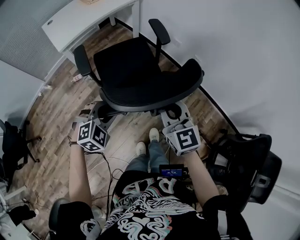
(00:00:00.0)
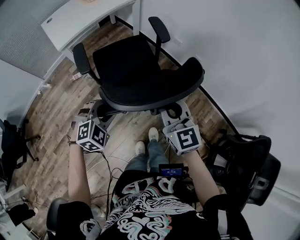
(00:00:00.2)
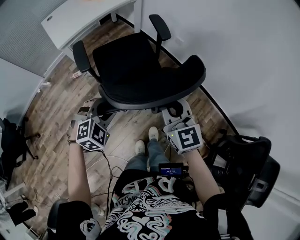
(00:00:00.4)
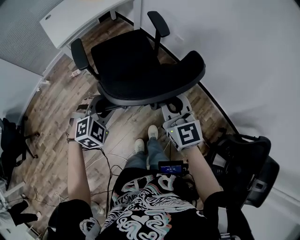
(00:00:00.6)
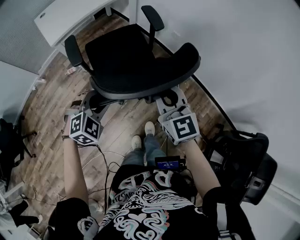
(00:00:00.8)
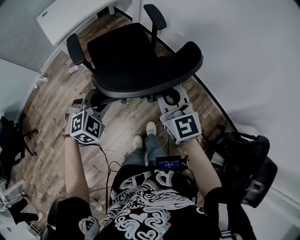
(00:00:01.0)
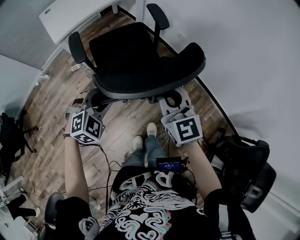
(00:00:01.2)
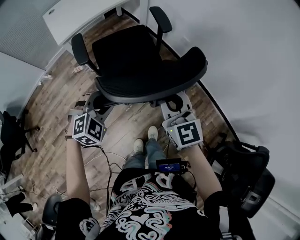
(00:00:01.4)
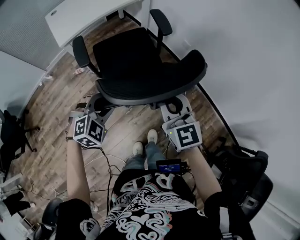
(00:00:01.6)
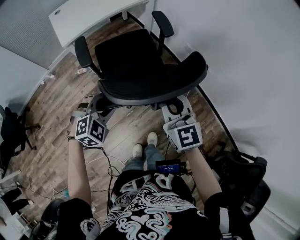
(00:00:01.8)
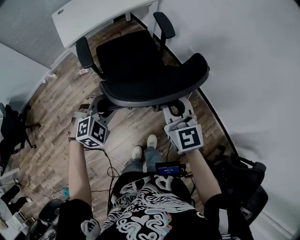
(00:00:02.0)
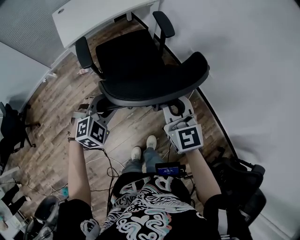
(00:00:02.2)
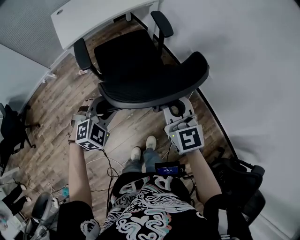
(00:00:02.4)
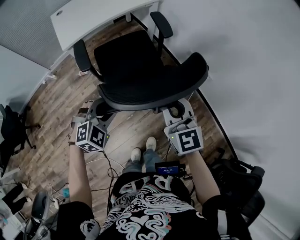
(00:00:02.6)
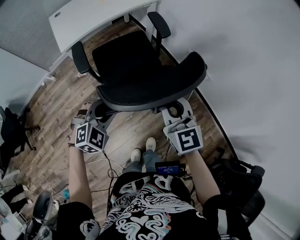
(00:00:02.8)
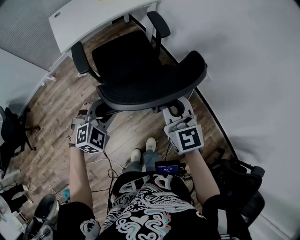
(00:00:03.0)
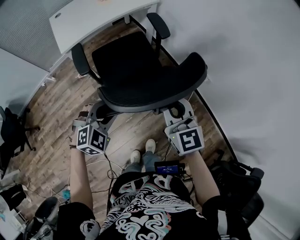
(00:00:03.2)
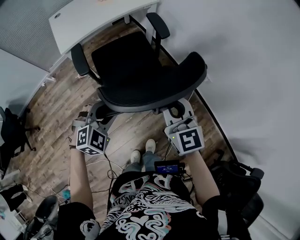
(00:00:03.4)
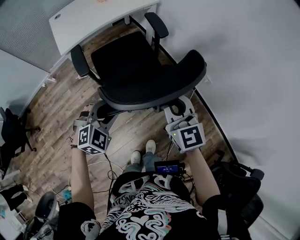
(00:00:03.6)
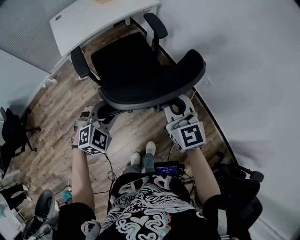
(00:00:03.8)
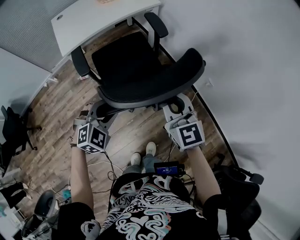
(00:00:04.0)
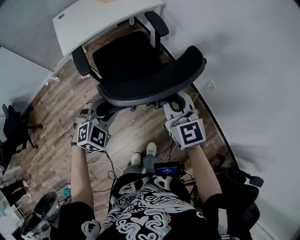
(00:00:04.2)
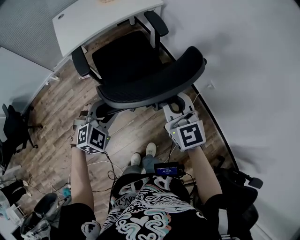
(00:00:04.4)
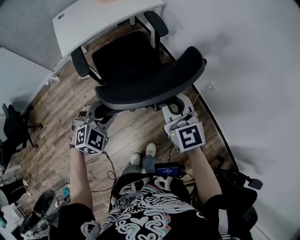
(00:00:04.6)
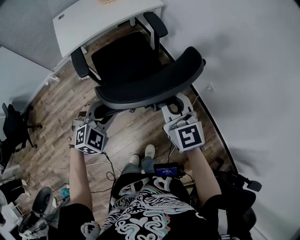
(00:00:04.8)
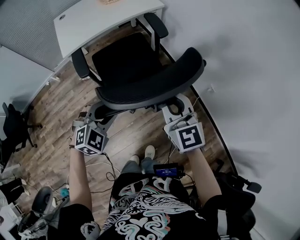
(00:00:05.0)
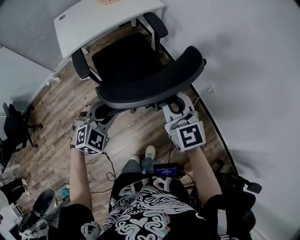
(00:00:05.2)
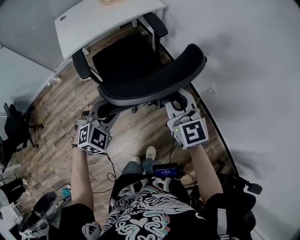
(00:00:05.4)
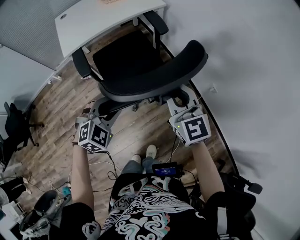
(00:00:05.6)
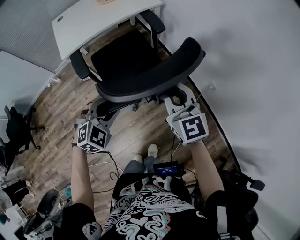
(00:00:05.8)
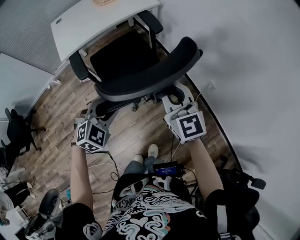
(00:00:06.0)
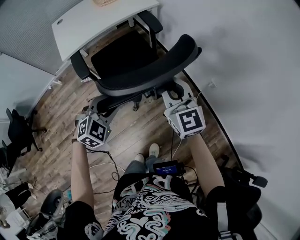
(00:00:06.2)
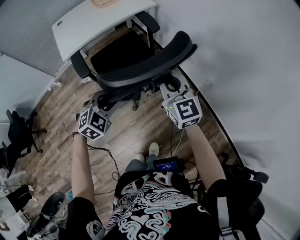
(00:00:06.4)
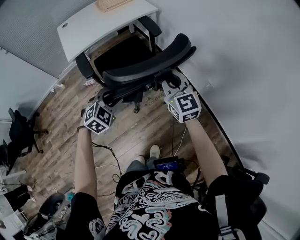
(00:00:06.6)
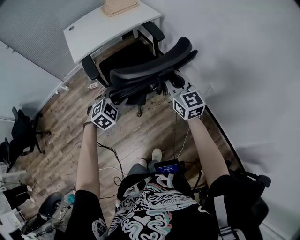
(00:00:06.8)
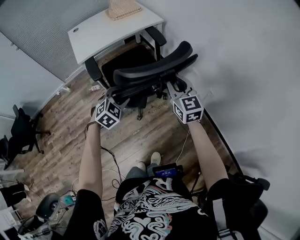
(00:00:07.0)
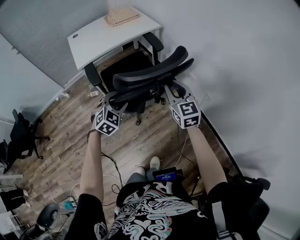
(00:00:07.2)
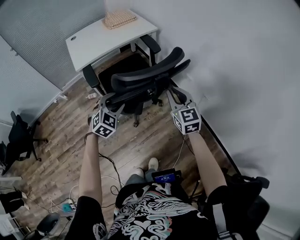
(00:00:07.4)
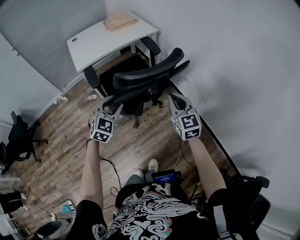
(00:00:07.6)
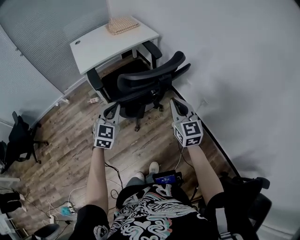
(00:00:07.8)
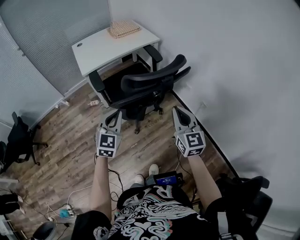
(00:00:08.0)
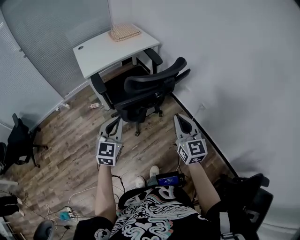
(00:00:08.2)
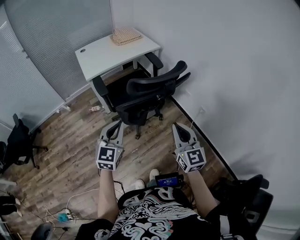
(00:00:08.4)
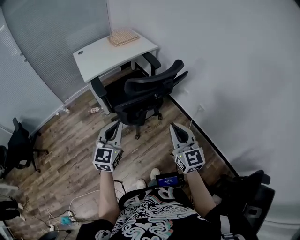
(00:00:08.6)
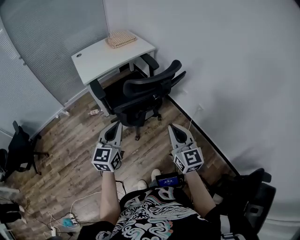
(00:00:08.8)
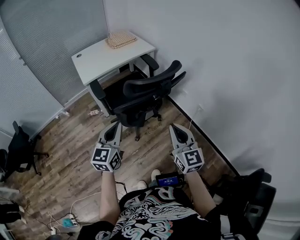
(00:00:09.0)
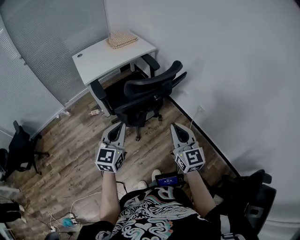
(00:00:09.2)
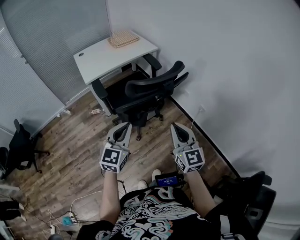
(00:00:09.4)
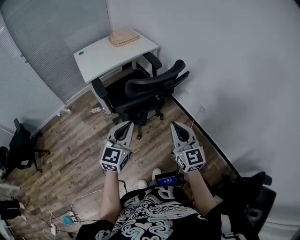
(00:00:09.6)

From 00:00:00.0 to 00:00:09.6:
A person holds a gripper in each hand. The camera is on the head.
From 00:00:00.0 to 00:00:01.6: The two grippers go some 10 cm forward.
From 00:00:01.6 to 00:00:03.2: The right gripper shifts roughly 5 cm forward.
From 00:00:03.2 to 00:00:04.8: The left gripper changes place by about 5 cm, while the right gripper goes about 5 cm forward.
From 00:00:04.8 to 00:00:06.4: There are only small adjustments of the grippers.
From 00:00:06.4 to 00:00:08.0: The left gripper goes approximately 15 cm upward and backward, angles its fingers upward, by some 30 degrees, and closes its fingers. Meanwhile the right gripper shifts roughly 15 cm backward.
From 00:00:08.0 to 00:00:09.6: Both grippers move backward, roughly 5 cm.

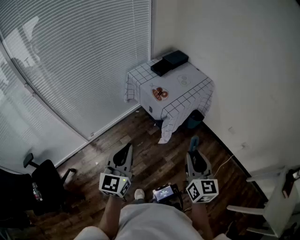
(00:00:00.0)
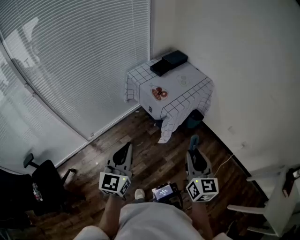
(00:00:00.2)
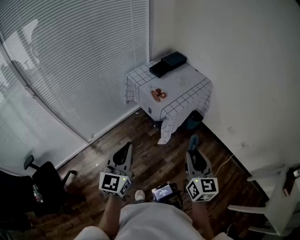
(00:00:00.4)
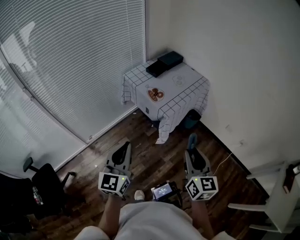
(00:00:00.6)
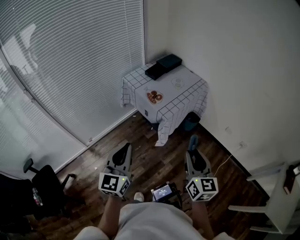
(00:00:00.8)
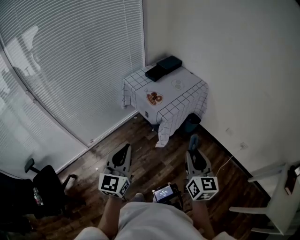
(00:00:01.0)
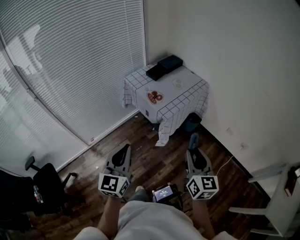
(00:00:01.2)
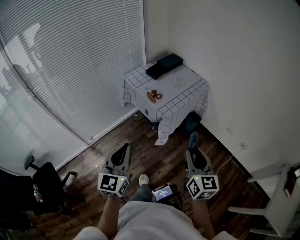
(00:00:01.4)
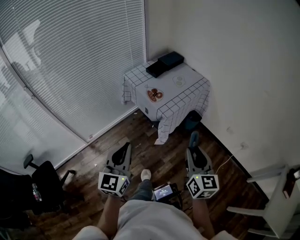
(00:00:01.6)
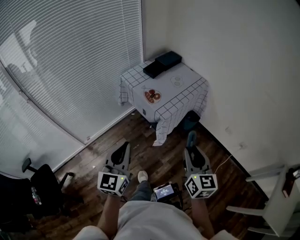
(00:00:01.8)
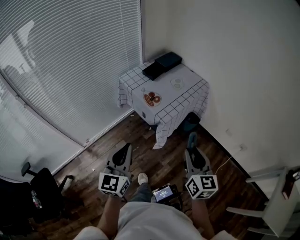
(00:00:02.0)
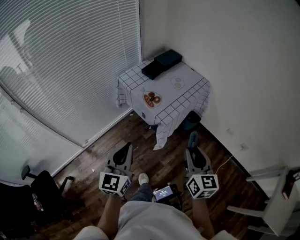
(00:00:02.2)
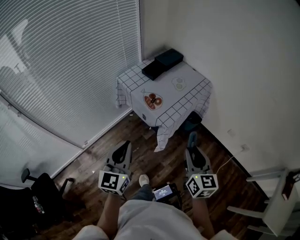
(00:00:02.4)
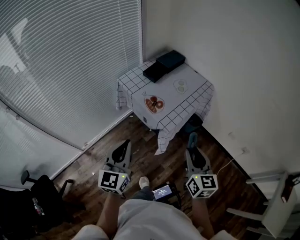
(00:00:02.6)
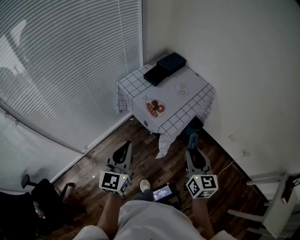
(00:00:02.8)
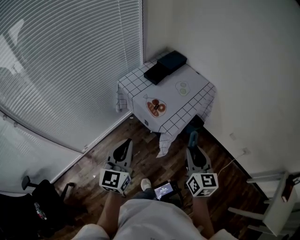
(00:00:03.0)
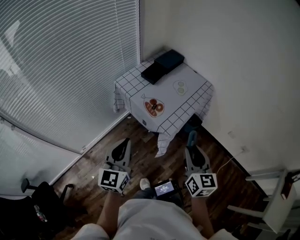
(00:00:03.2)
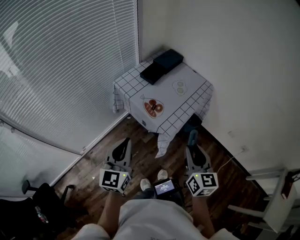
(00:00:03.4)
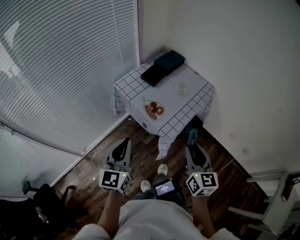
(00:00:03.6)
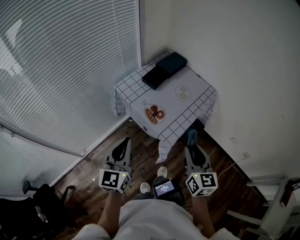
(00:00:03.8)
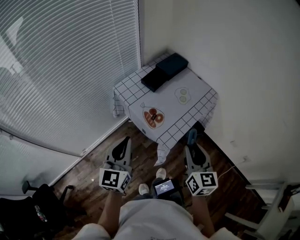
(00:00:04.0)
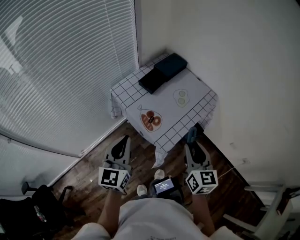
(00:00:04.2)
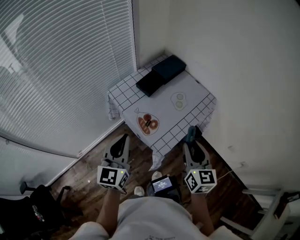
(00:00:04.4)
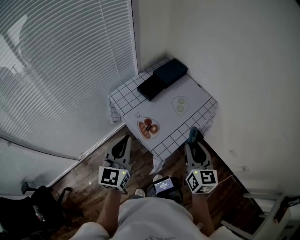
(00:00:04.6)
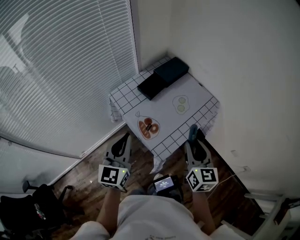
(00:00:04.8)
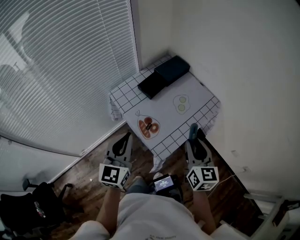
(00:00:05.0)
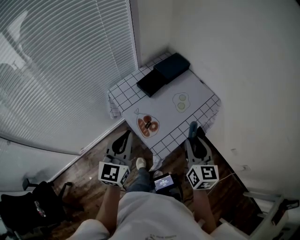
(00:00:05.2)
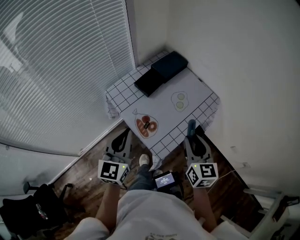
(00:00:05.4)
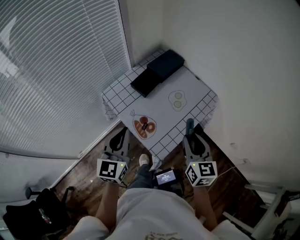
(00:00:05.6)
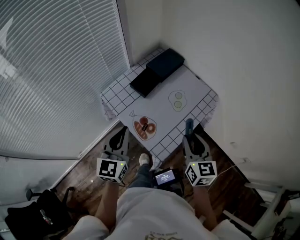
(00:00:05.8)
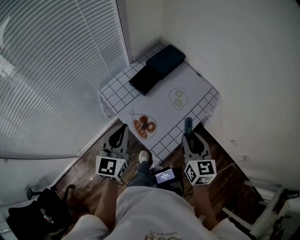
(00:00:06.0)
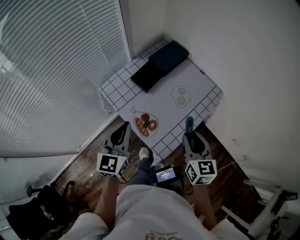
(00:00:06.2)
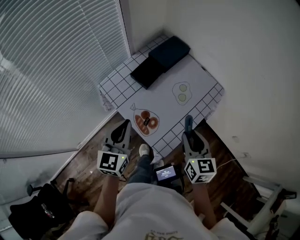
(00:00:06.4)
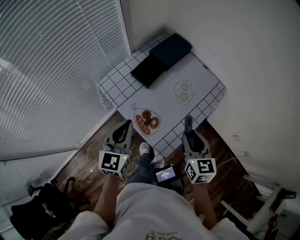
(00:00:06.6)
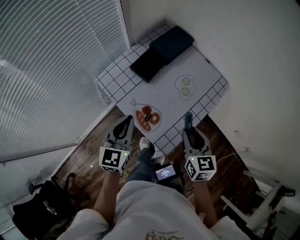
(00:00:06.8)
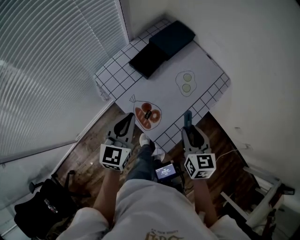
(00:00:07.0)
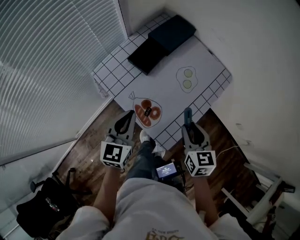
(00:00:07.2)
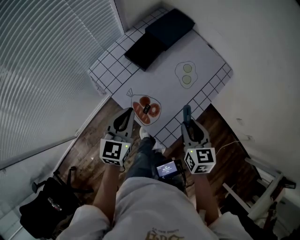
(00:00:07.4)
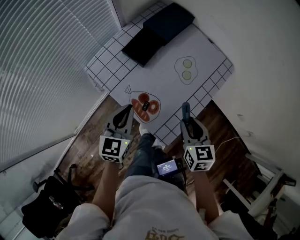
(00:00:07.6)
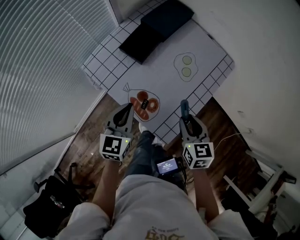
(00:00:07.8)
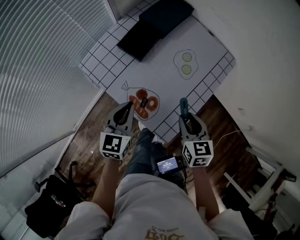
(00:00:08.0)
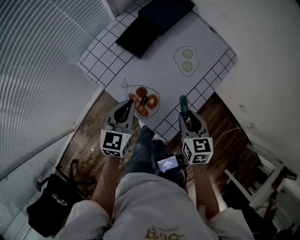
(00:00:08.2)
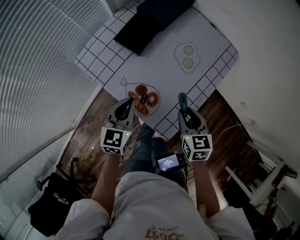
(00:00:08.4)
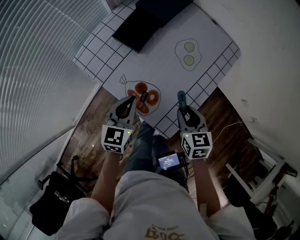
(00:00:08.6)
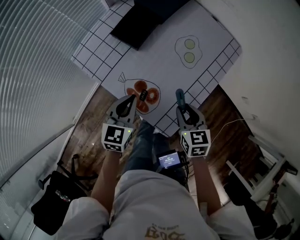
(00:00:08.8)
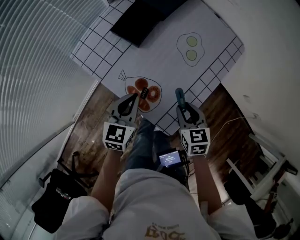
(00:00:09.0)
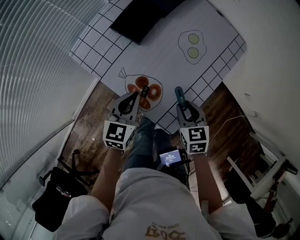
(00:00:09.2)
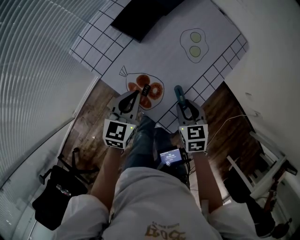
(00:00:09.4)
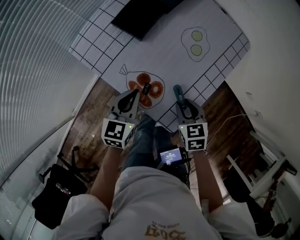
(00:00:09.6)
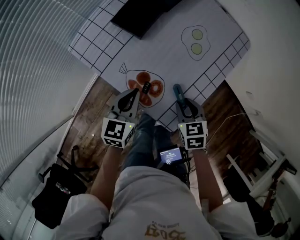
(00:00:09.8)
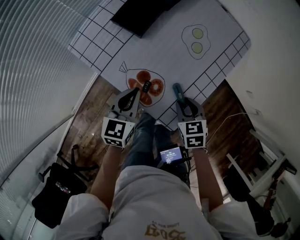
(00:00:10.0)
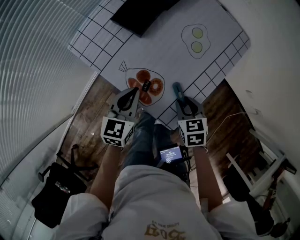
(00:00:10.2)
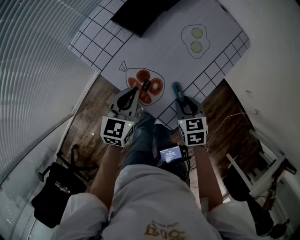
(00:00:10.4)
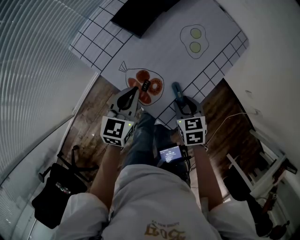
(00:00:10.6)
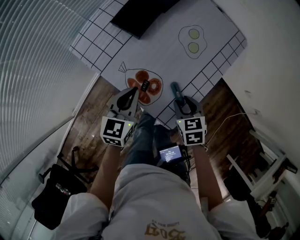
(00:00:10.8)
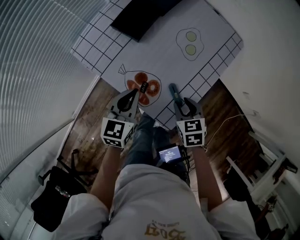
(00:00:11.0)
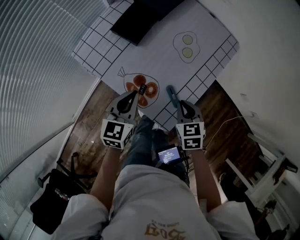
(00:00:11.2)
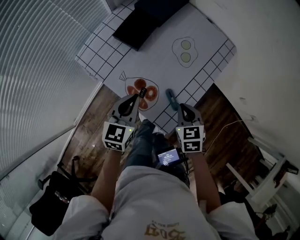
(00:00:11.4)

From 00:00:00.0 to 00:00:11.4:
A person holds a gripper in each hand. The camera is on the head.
From 00:00:00.0 to 00:00:01.4: The grippers move only a little.
From 00:00:01.4 to 00:00:02.8: Both grippers travel together forward, some 20 cm.
From 00:00:02.8 to 00:00:04.2: The grippers both shift forward by approximately 15 cm.
From 00:00:04.2 to 00:00:05.6: Both grippers travel together forward, about 10 cm.
From 00:00:05.6 to 00:00:07.2: The left gripper is displaced downward and forward by approximately 15 cm. The right gripper moves downward, some 10 cm.
From 00:00:07.2 to 00:00:08.6: Both grippers travel together downward, roughly 10 cm.
From 00:00:08.6 to 00:00:10.0: The right gripper travels downward by roughly 5 cm.
From 00:00:10.0 to 00:00:11.4: Both grippers move upward, roughly 5 cm. The right gripper closes its fingers.

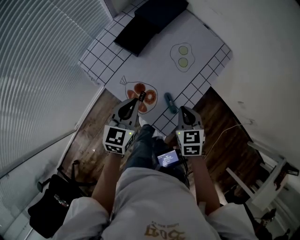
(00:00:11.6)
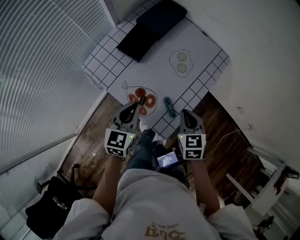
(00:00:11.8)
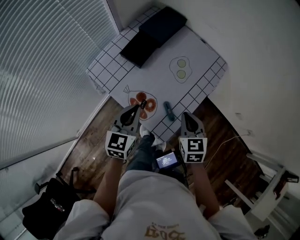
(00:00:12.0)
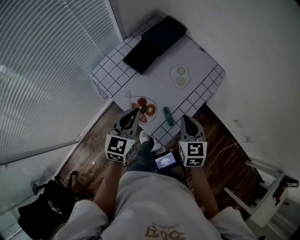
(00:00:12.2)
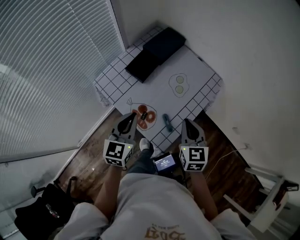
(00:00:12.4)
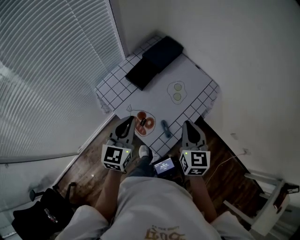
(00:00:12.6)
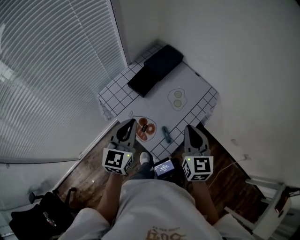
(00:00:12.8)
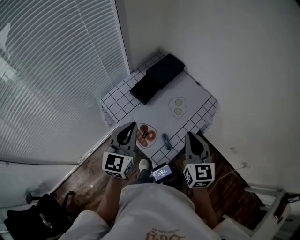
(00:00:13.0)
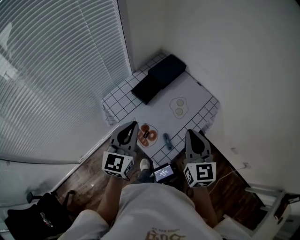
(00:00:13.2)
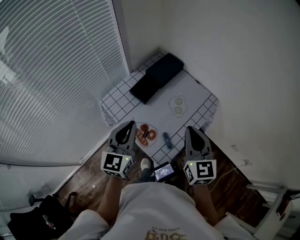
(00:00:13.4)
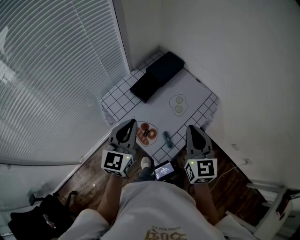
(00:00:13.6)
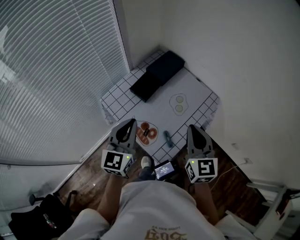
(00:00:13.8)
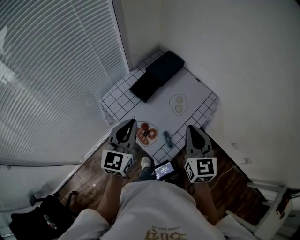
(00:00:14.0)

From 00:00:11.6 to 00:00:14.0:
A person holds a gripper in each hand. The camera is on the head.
From 00:00:11.6 to 00:00:12.8: The two grippers go some 20 cm upward. The right gripper swivels approximately 30 degrees, while the left gripper changes its angle by about 20 degrees.
From 00:00:12.8 to 00:00:14.0: The grippers move only a little.
